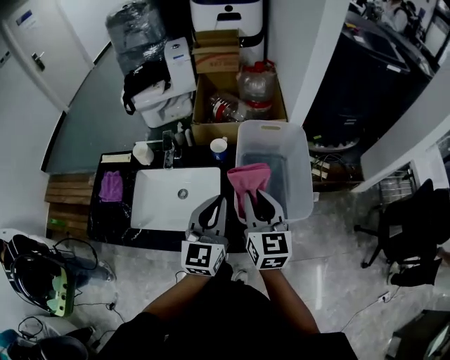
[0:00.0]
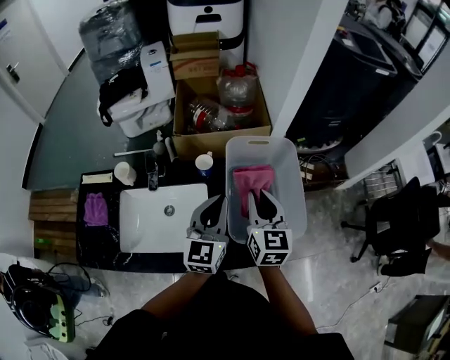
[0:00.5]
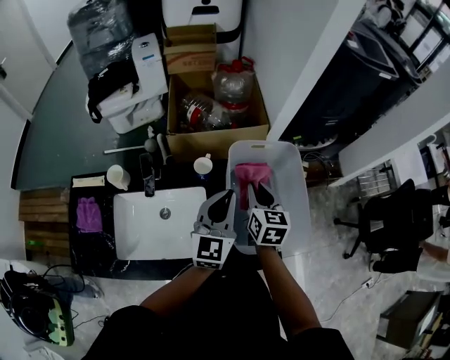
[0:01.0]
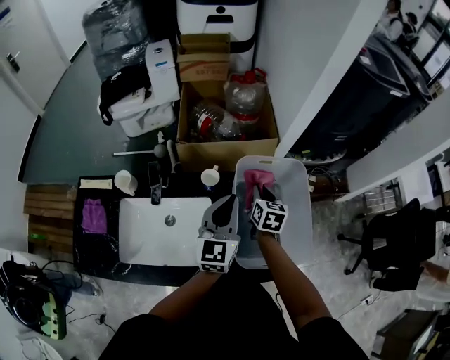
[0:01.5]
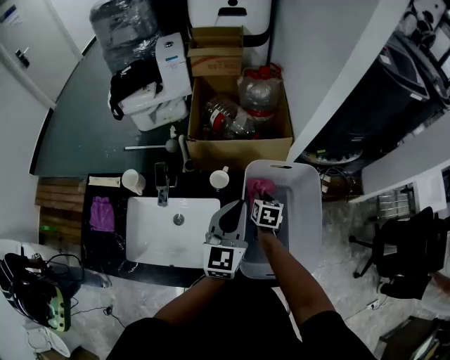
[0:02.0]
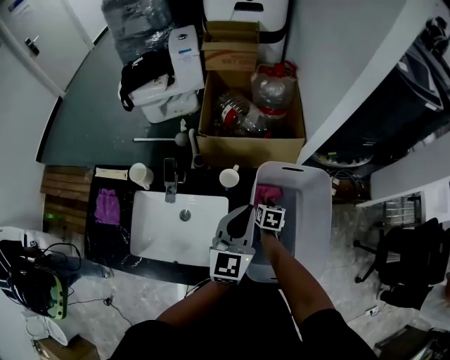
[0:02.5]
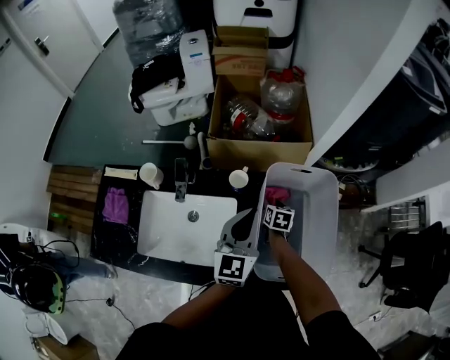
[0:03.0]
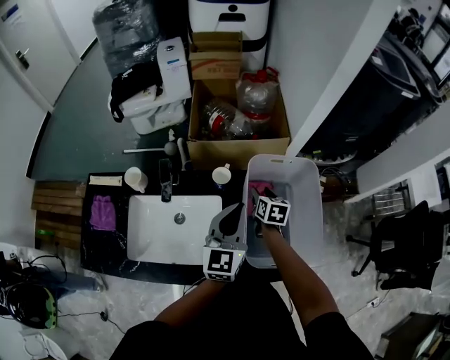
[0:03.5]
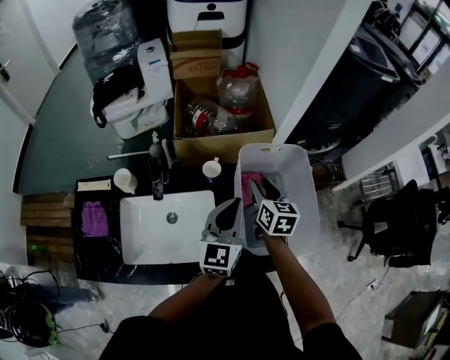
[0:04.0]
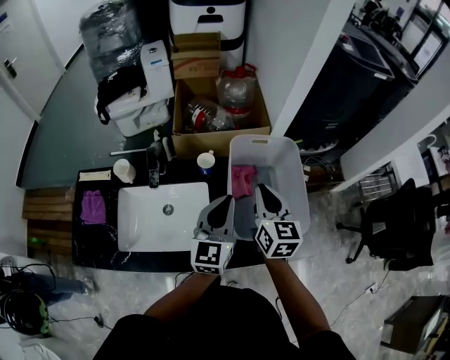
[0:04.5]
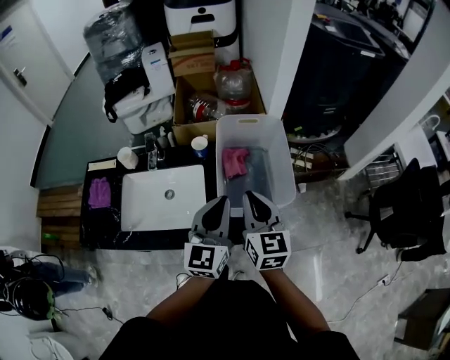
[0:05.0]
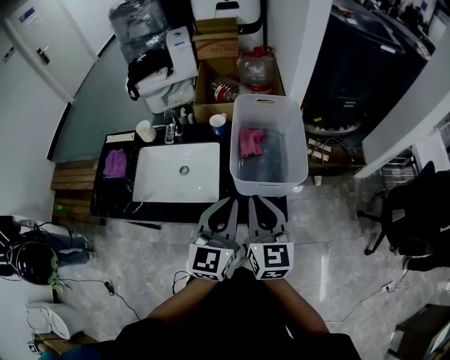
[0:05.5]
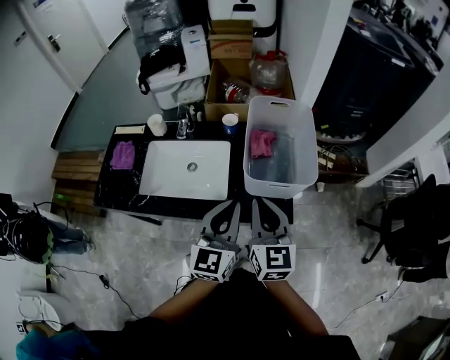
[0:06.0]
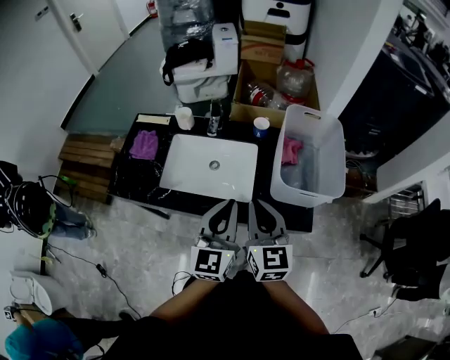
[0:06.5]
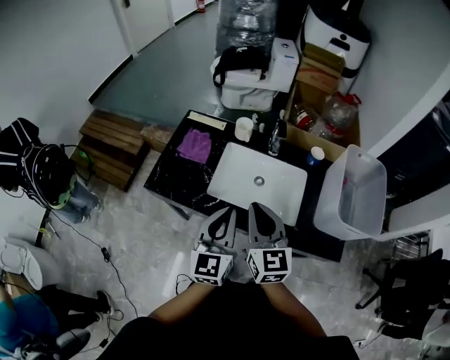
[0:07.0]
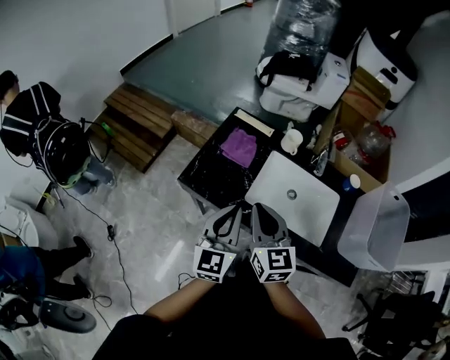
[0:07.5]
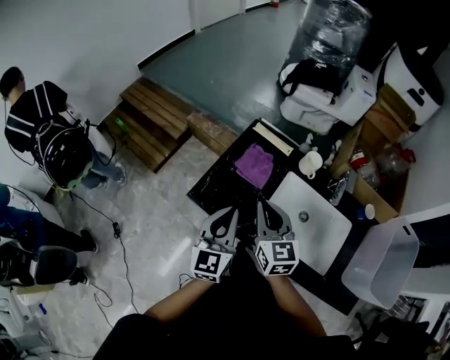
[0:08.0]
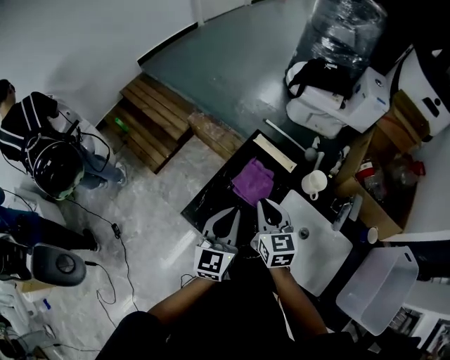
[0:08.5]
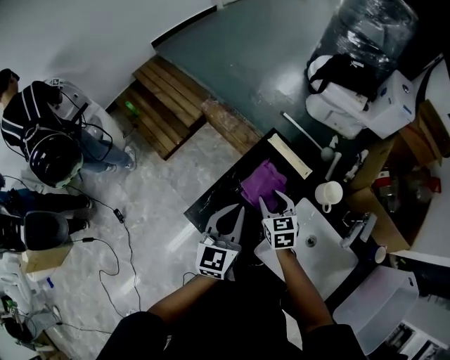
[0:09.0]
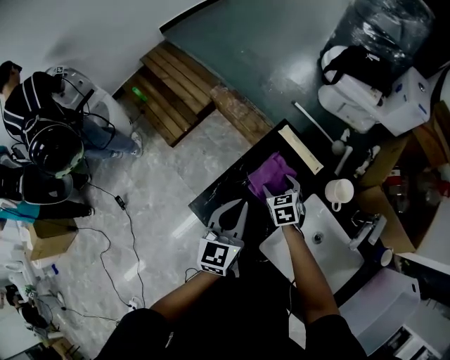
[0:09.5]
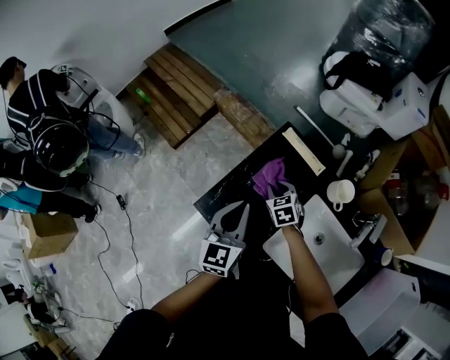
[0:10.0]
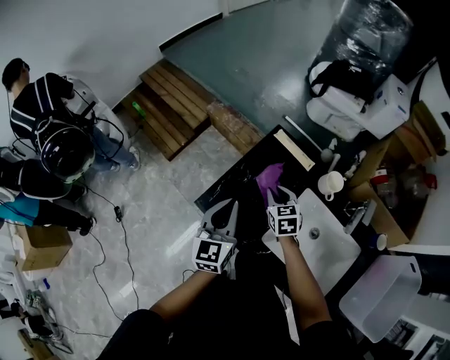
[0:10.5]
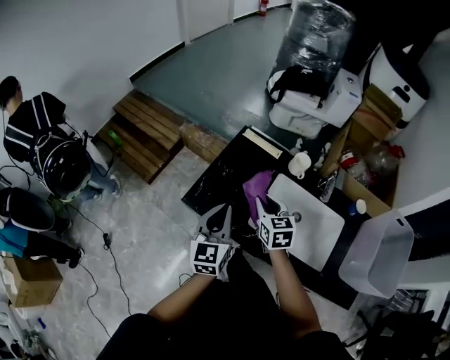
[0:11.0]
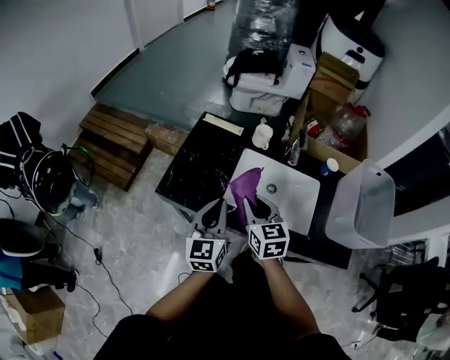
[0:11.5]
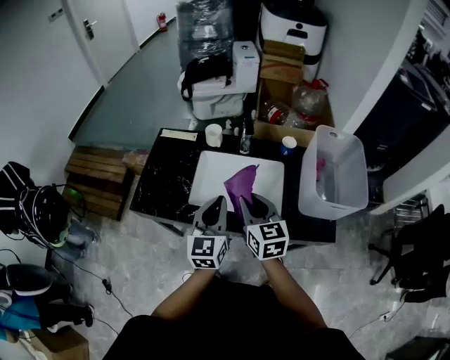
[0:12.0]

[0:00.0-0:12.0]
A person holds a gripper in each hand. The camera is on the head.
0.0 to 2.0 s: The right gripper moves downward and forward, approximately 35 cm, and points its fingers some 40 degrees further downward, while the left gripper travels forward by some 20 cm.
2.0 to 4.0 s: The right gripper shifts about 15 cm upward and backward, and rotates some 20 degrees; the left gripper goes some 5 cm backward.
4.0 to 6.0 s: The two grippers go roughly 30 cm backward. The right gripper turns by some 20 degrees, and closes up.
6.0 to 8.0 s: The pair of grippers is taken about 60 cm. The right gripper swivels about 40 degrees, while the left gripper rotates roughly 30 degrees.
8.0 to 10.0 s: The right gripper travels downward and forward by approximately 35 cm, points its fingers about 40 degrees further downward, and opens, then closes again. Meanwhile the left gripper shifts roughly 15 cm forward and downward.
10.0 to 12.0 s: The left gripper ends up roughly 35 cm from where it was, and turns by about 30 degrees; the right gripper changes place by about 50 cm, and points its fingers roughly 30 degrees further upward.

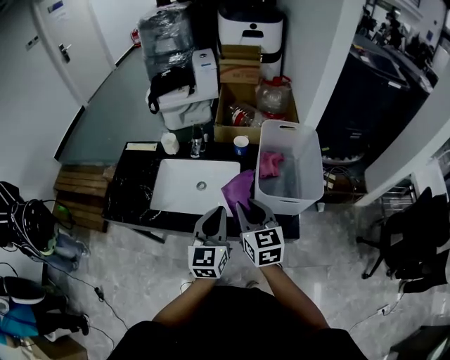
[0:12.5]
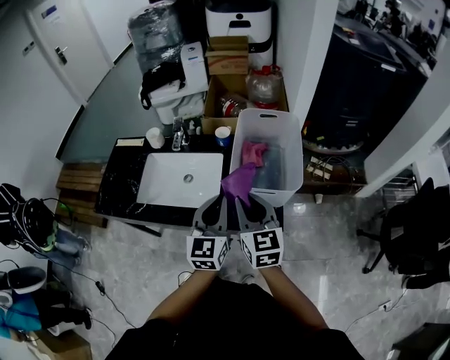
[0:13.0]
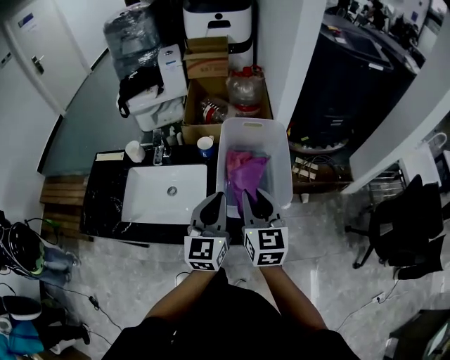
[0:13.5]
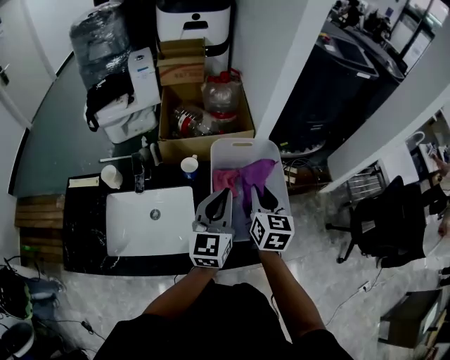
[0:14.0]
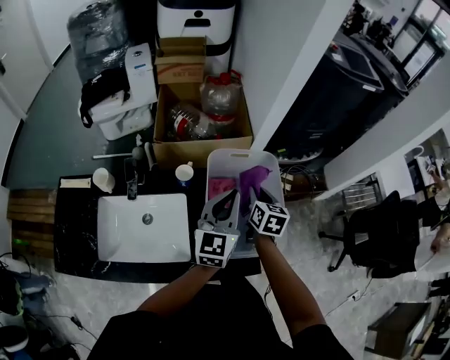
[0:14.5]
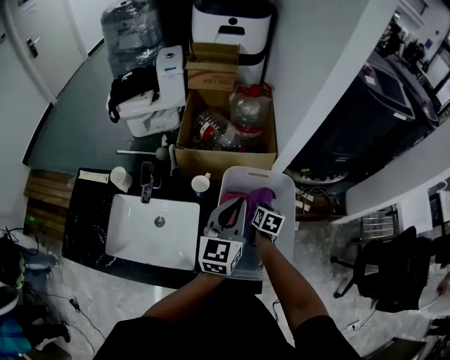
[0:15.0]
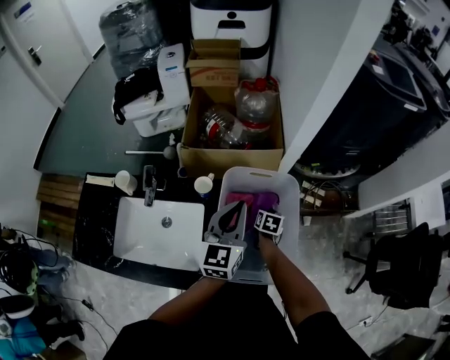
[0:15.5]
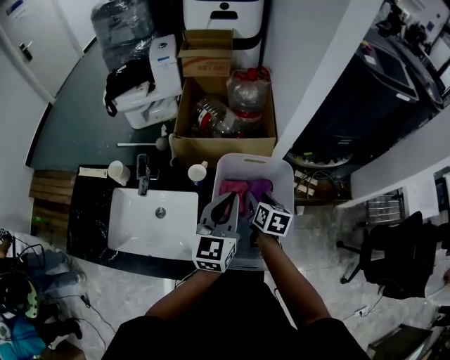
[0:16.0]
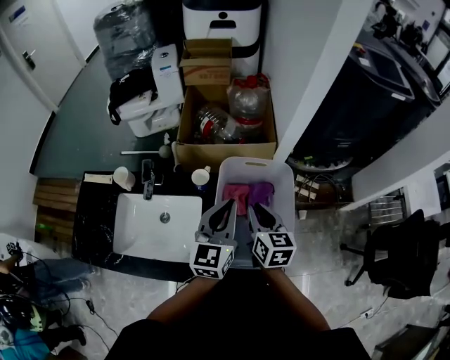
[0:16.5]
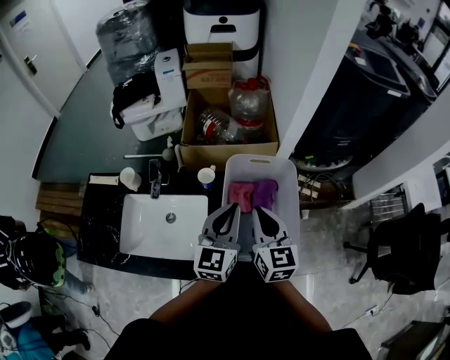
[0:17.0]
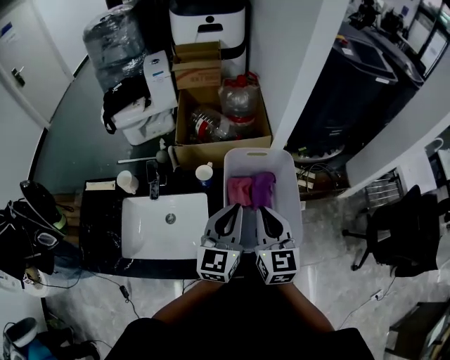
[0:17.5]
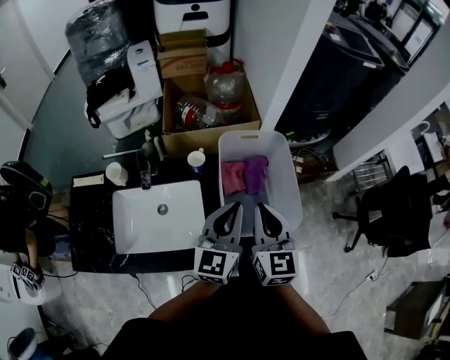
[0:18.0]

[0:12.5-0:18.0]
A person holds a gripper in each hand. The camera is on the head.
12.5 to 14.5 s: Both grippers move forward and to the right, about 35 cm. The left gripper rotates some 20 degrees. The right gripper swivels approximately 40 degrees.
14.5 to 16.0 s: The right gripper reaches about 20 cm downward, then returns, and opens its fingers.
16.0 to 18.0 s: The left gripper shifts some 10 cm backward; the right gripper goes approximately 25 cm backward and upward, turns by roughly 40 degrees, and closes.

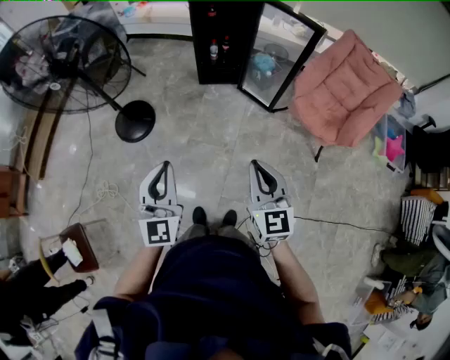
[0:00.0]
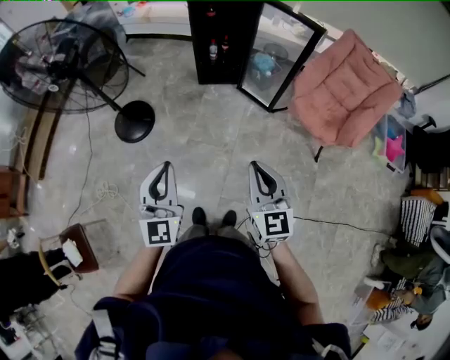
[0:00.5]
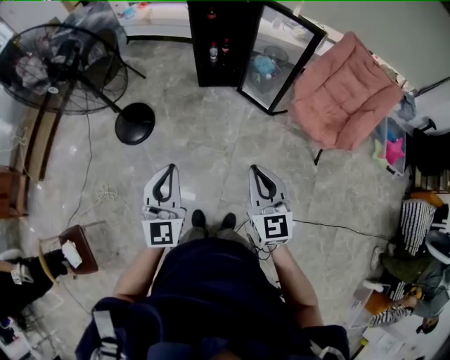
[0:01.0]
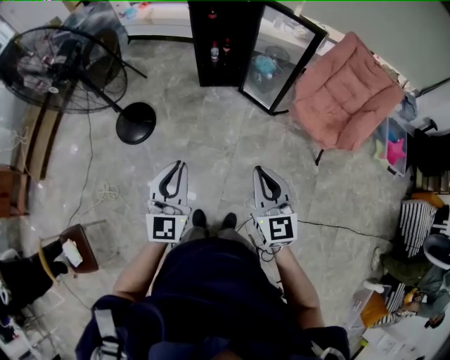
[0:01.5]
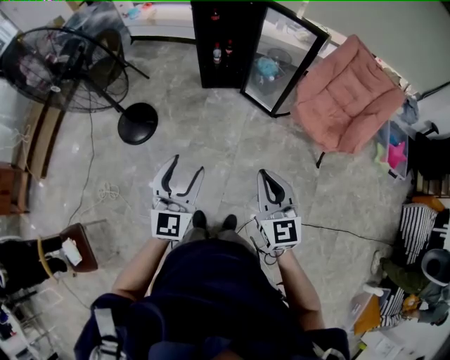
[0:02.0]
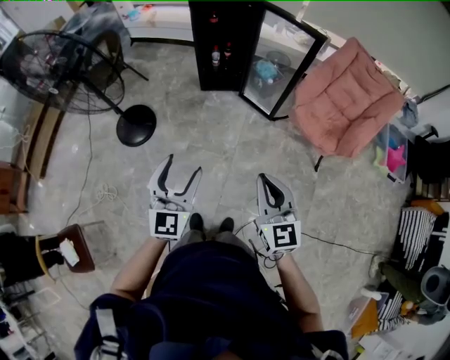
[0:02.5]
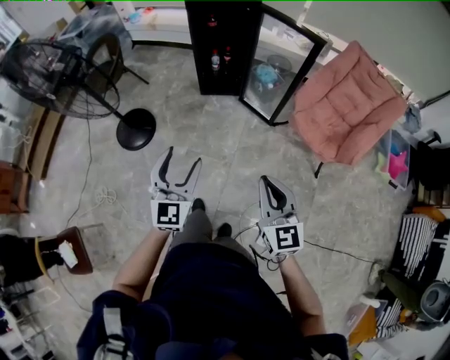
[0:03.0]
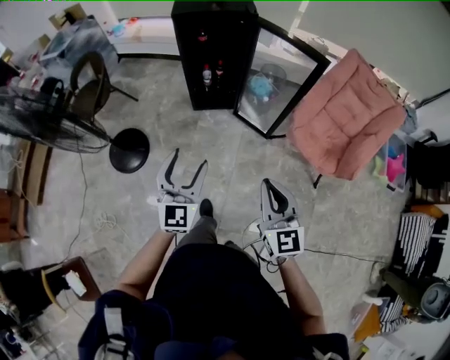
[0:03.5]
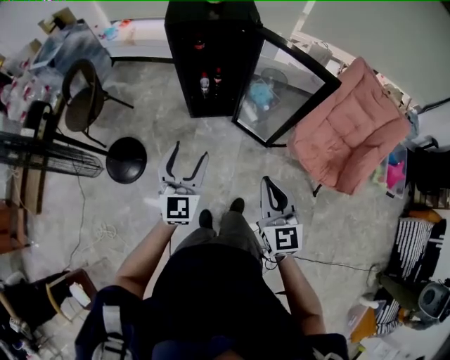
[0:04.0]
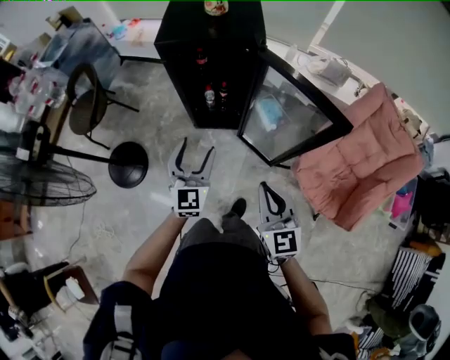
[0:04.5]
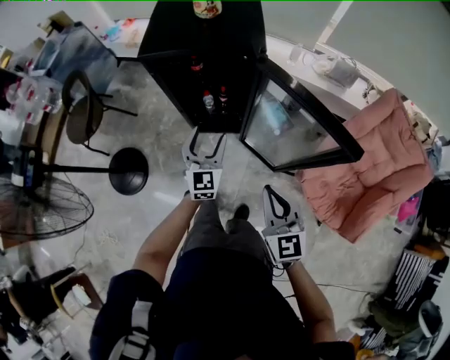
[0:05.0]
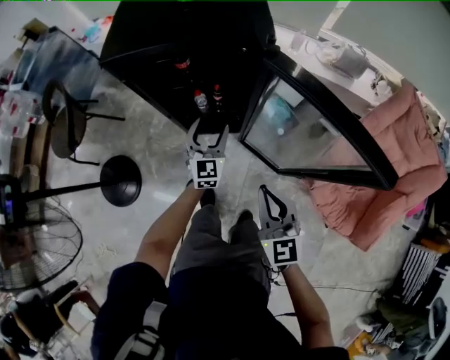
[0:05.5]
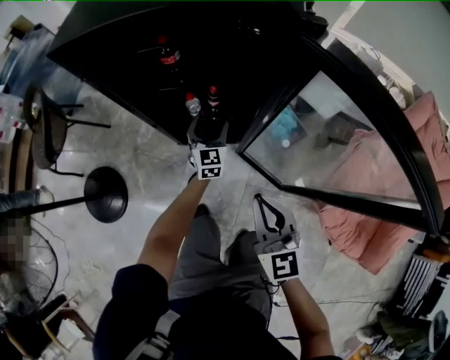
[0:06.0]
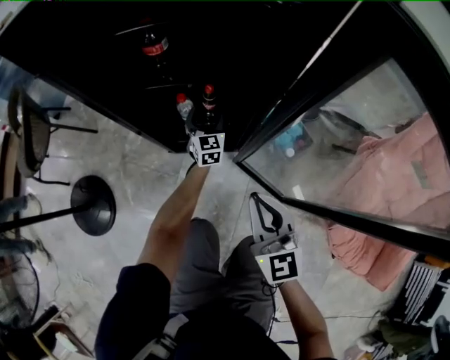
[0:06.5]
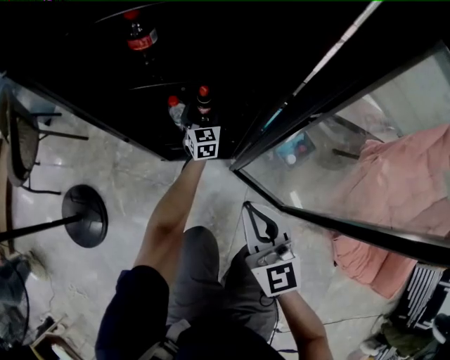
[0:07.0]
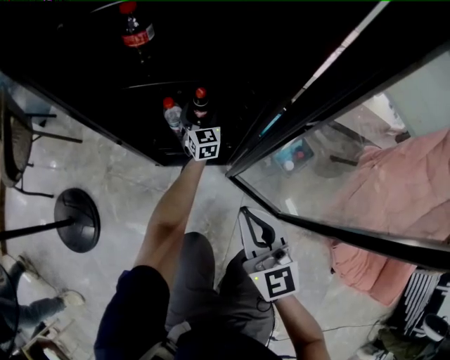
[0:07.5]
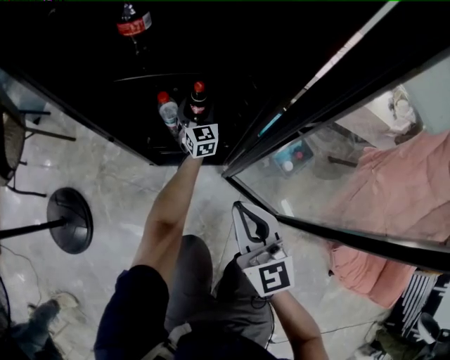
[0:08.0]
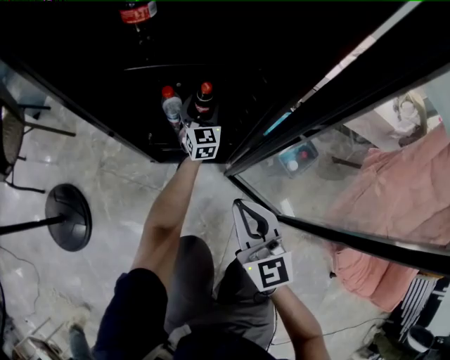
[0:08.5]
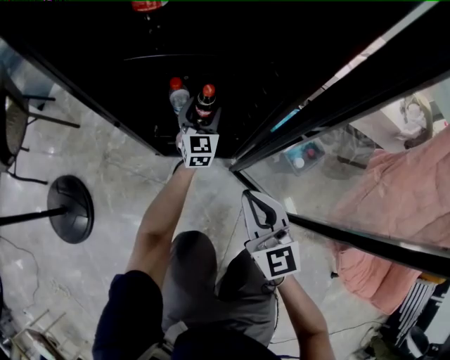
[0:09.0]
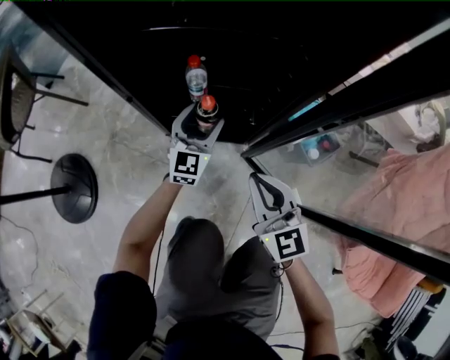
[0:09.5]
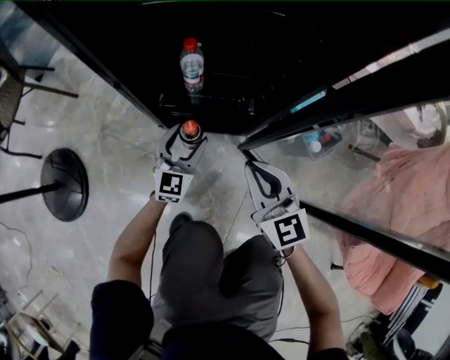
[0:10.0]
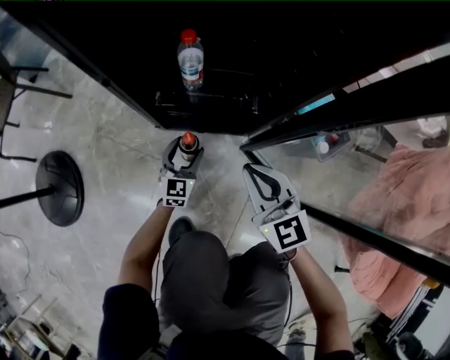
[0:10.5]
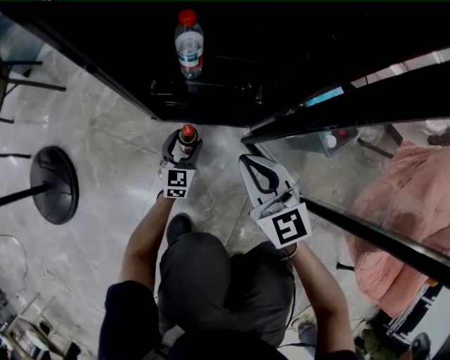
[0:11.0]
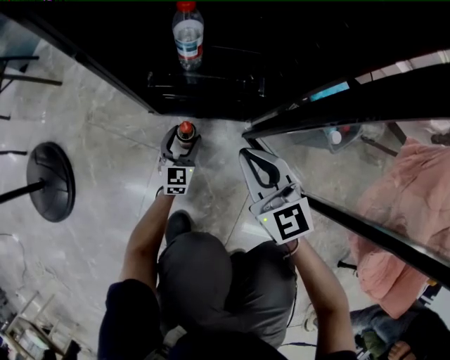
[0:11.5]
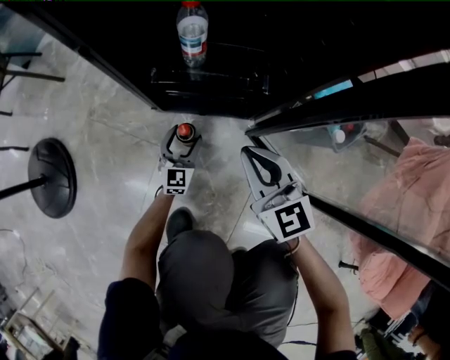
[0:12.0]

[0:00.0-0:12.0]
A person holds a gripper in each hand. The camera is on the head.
0.0 to 2.0 s: The left gripper travels to the right by about 5 cm, and opens up.
2.0 to 4.0 s: Both grippers move forward, approximately 35 cm.
4.0 to 6.0 s: The two grippers go some 60 cm forward and downward.
6.0 to 8.0 s: The right gripper shifts about 20 cm downward. Meanwhile the left gripper travels downward and forward by approximately 30 cm.
8.0 to 10.0 s: The left gripper moves backward and to the left, some 25 cm, while the right gripper goes roughly 15 cm downward.
10.0 to 12.0 s: The right gripper moves downward, approximately 10 cm. The left gripper heads downward, covering some 20 cm.
